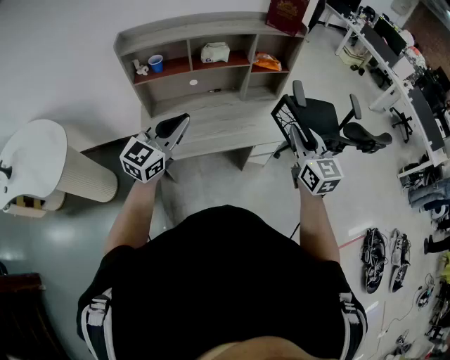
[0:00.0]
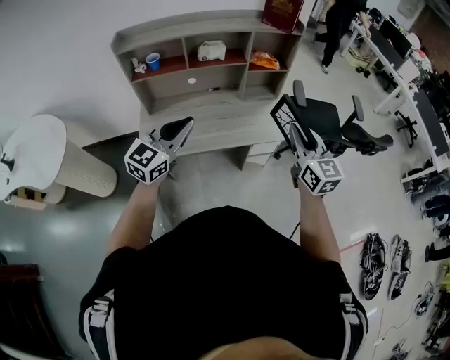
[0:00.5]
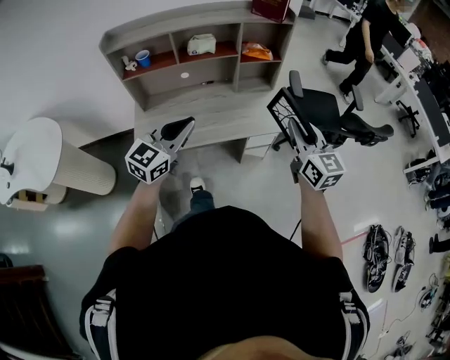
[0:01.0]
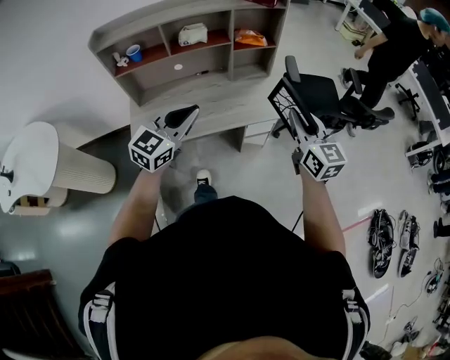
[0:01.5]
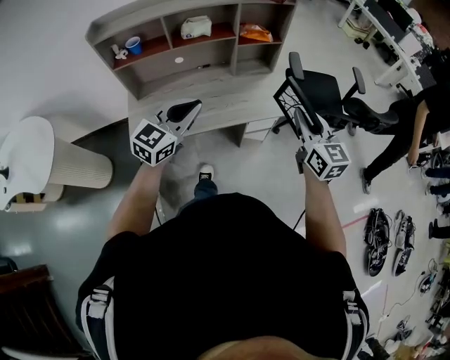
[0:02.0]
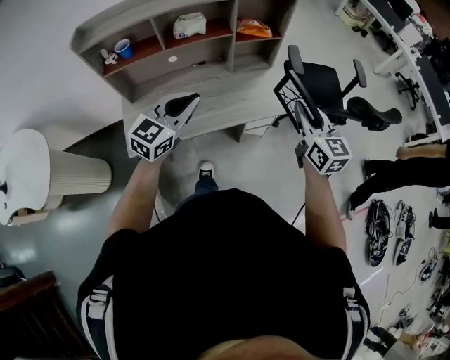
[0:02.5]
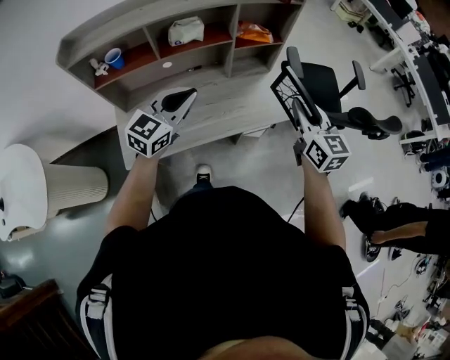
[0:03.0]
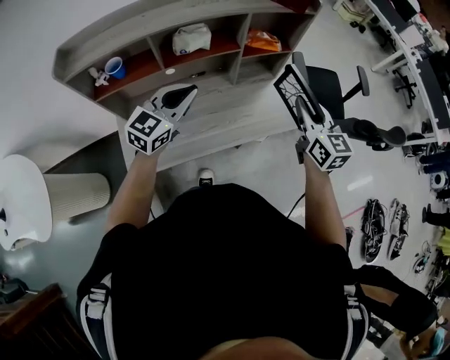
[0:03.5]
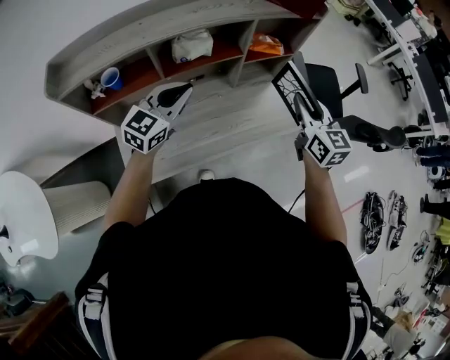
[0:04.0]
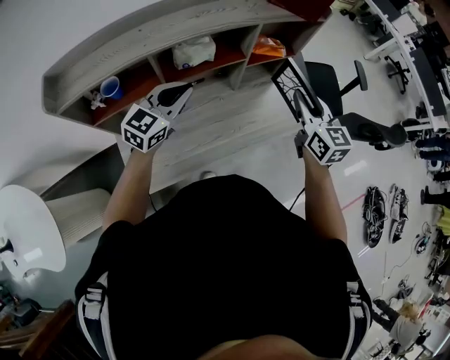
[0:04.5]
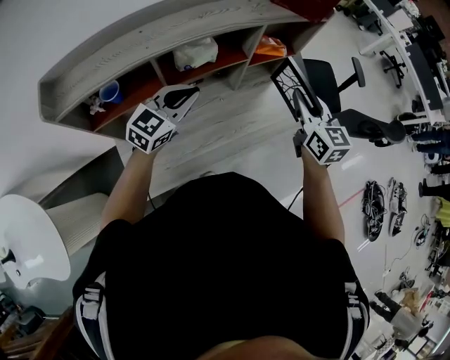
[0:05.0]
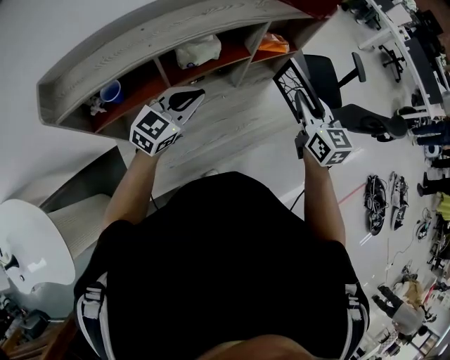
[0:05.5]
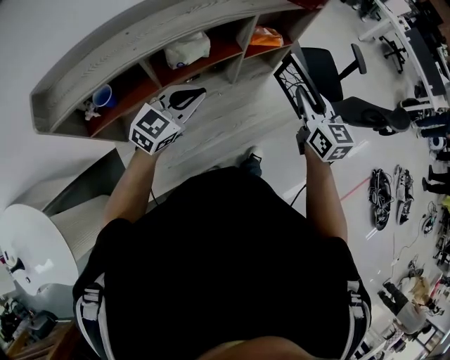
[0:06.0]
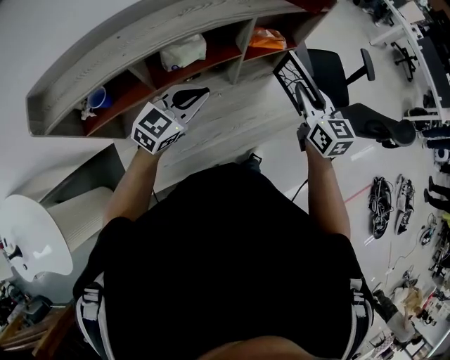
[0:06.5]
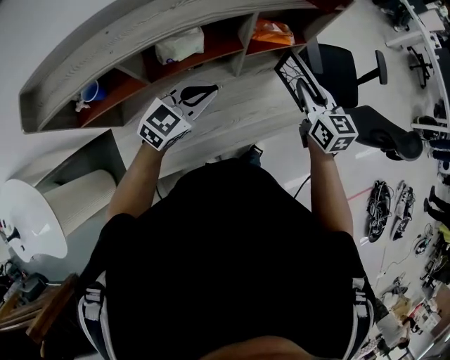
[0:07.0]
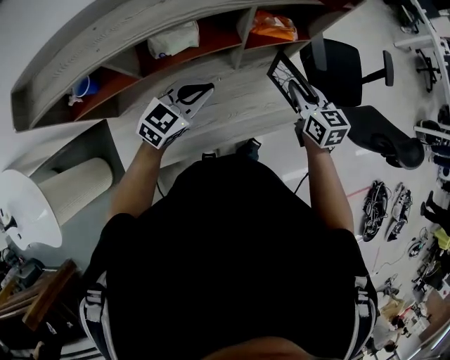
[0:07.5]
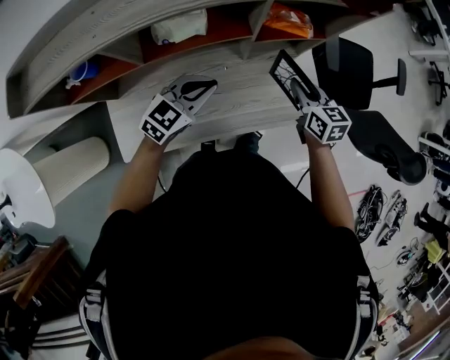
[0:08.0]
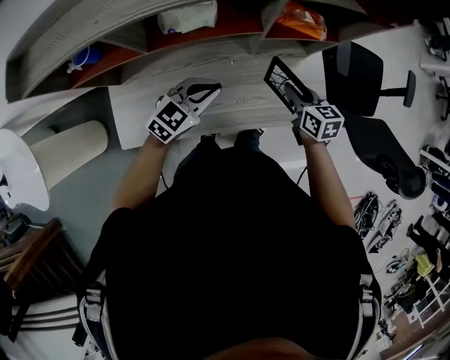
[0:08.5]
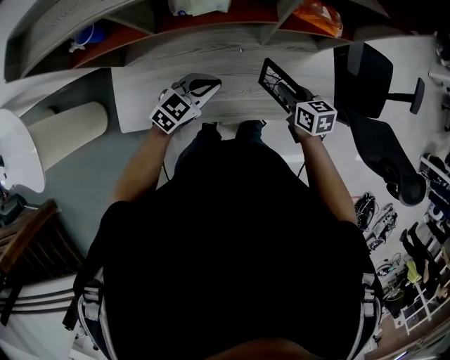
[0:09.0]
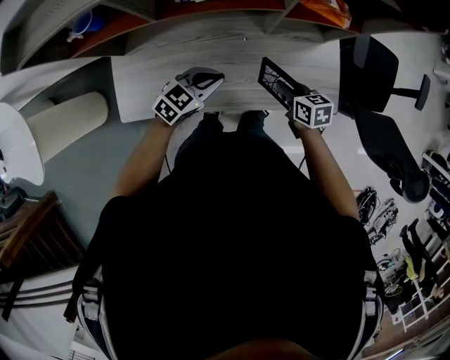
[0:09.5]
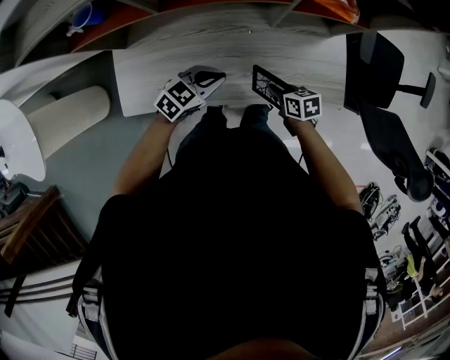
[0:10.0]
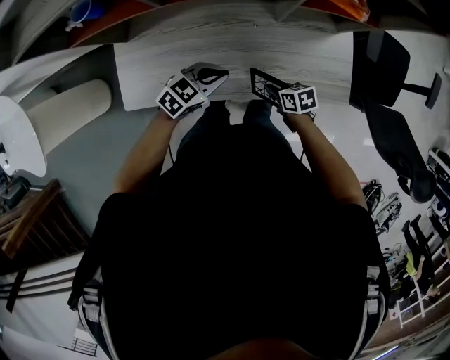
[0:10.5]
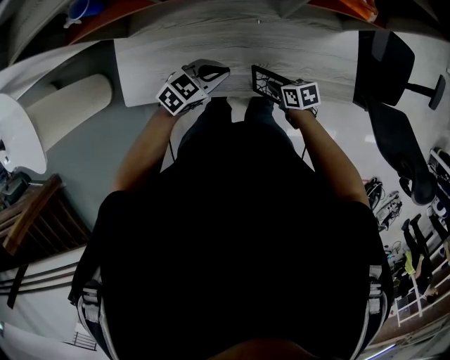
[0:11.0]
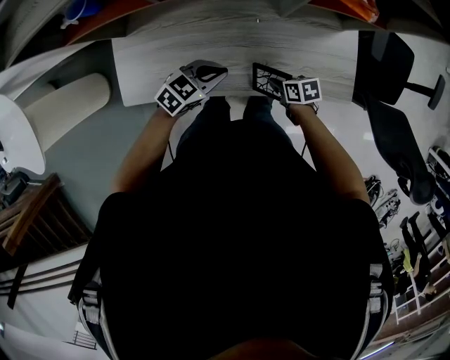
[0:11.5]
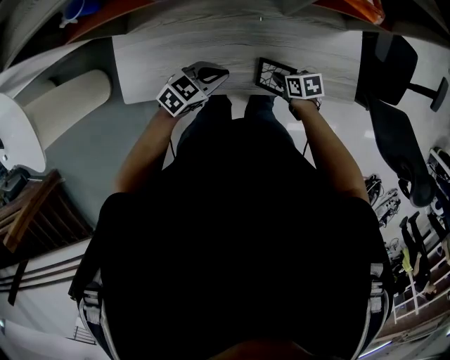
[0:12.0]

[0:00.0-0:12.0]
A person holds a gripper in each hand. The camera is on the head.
0:00.0 to 0:02.0: The right gripper is displaced to the right by roughly 10 cm; the left gripper moves to the right and downward, about 15 cm.
0:02.0 to 0:04.0: The grippers both shift forward and to the left by roughly 30 cm.
0:04.0 to 0:06.0: The grippers move only a little.
0:06.0 to 0:08.0: The left gripper shifts about 15 cm downward, to the right and forward. The right gripper is displaced downward and forward by approximately 20 cm, and swivels about 30 degrees.
0:08.0 to 0:10.0: Both grippers travel together downward, some 15 cm. The right gripper changes its angle by some 40 degrees.
0:10.0 to 0:12.0: The right gripper is displaced downward by about 5 cm.

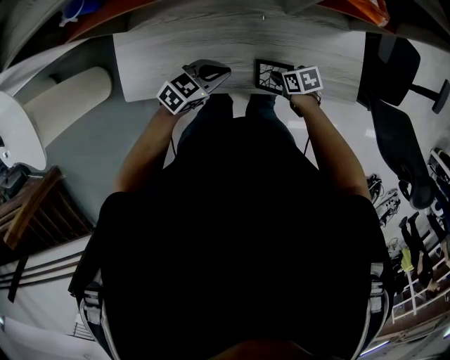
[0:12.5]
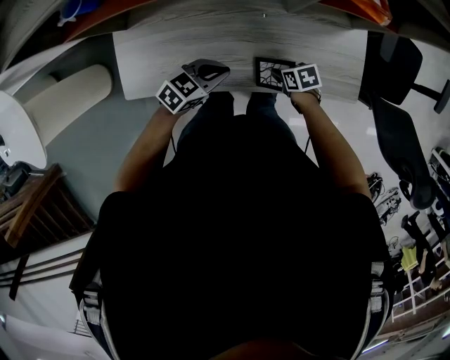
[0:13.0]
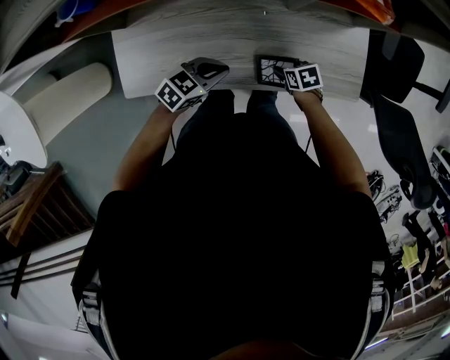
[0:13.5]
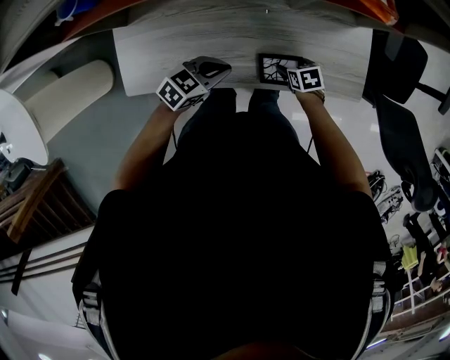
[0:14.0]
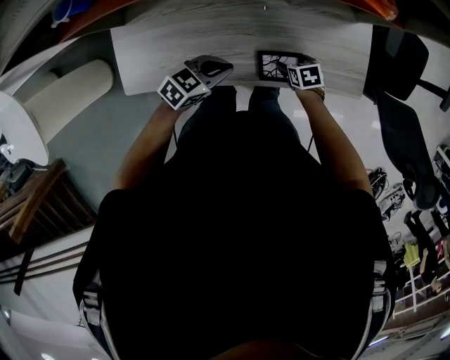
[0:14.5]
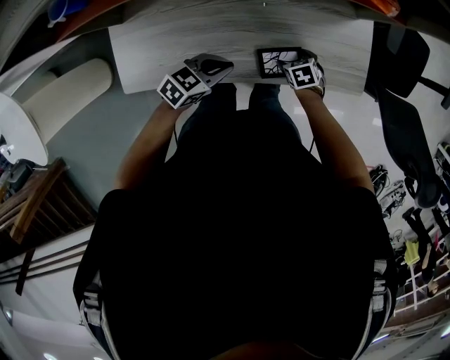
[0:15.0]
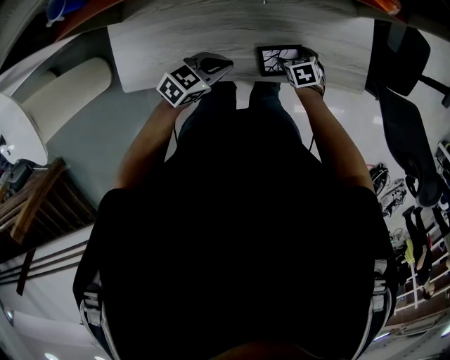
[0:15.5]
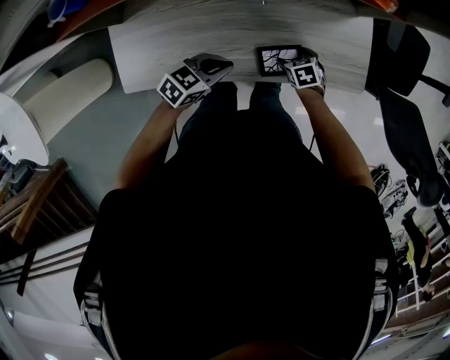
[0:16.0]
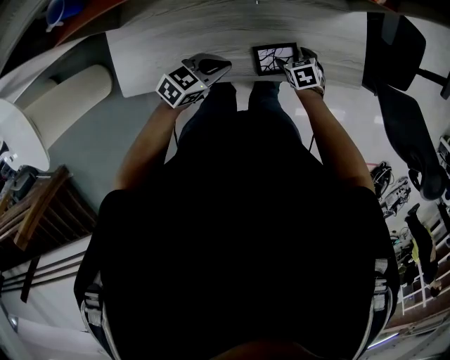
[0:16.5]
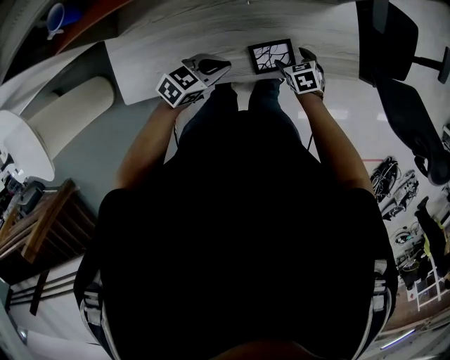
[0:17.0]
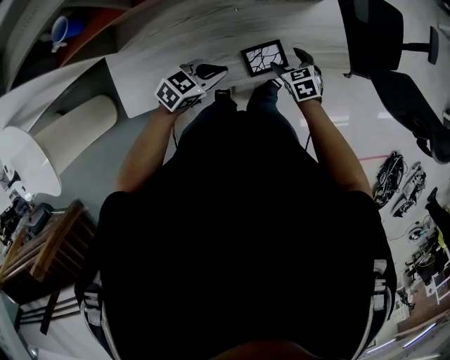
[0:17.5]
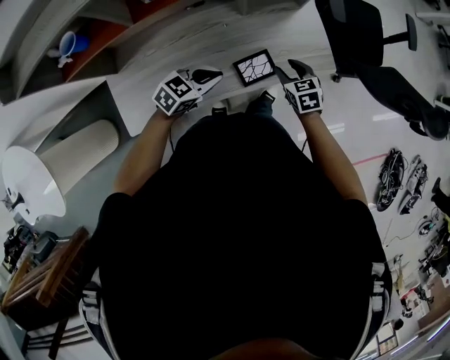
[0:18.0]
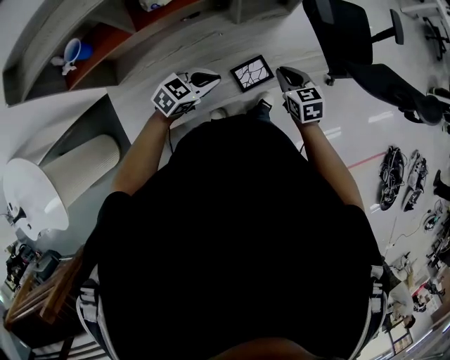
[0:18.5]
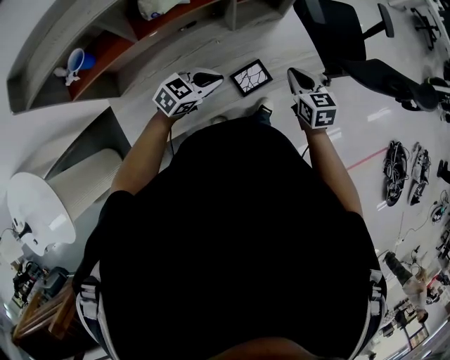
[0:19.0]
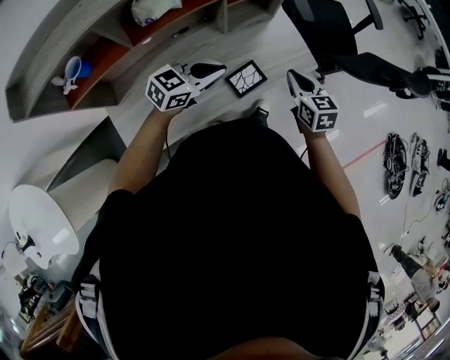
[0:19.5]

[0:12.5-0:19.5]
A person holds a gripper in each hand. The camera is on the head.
0:12.5 to 0:14.5: The right gripper shifts by some 5 cm, and opens.
0:14.5 to 0:16.0: The grippers make only small movements.
0:16.0 to 0:17.5: The right gripper travels upward by some 10 cm.
0:17.5 to 0:19.5: The right gripper is displaced upward by roughly 20 cm, changes its angle by about 40 degrees, and closes its fingers; the left gripper travels upward by roughly 15 cm, and rotates some 20 degrees.

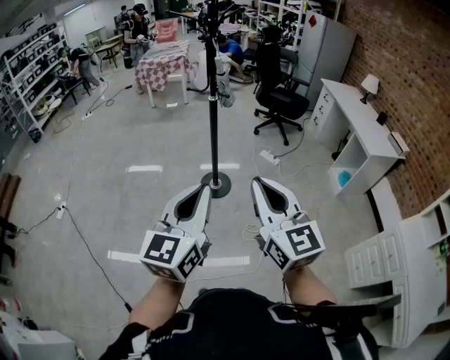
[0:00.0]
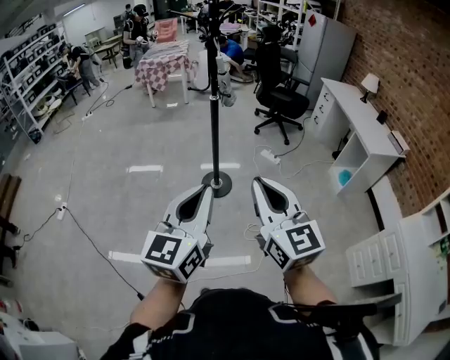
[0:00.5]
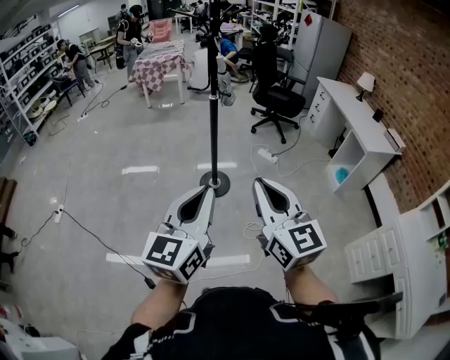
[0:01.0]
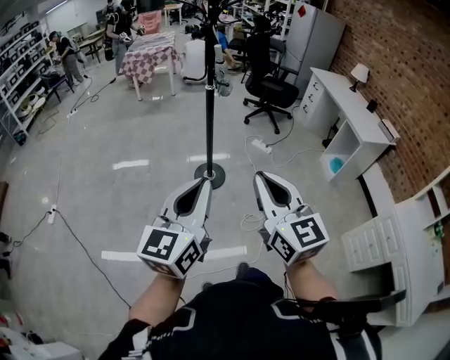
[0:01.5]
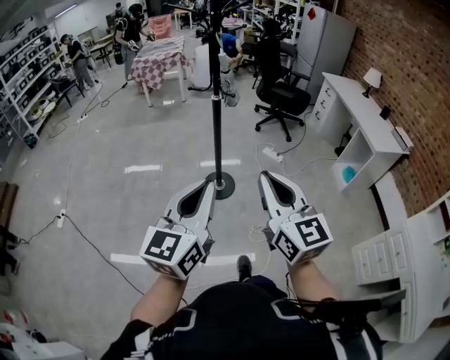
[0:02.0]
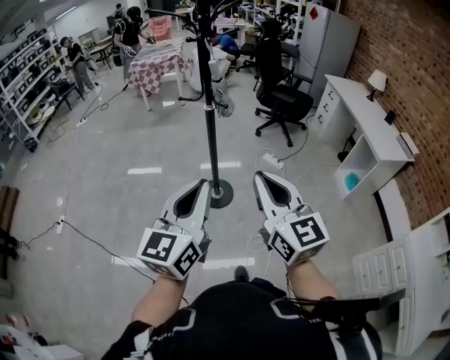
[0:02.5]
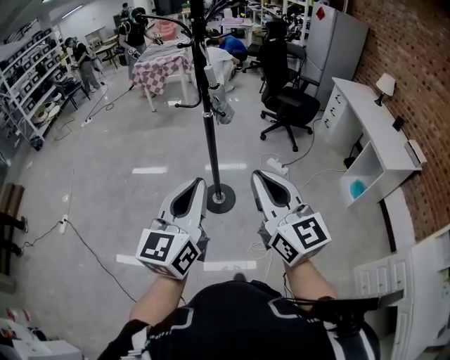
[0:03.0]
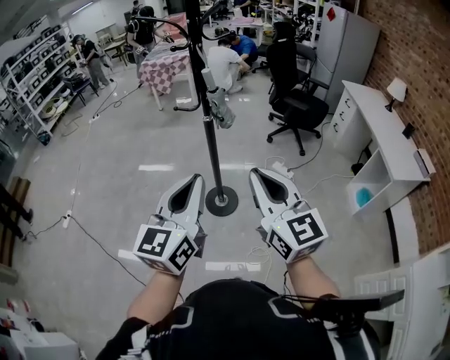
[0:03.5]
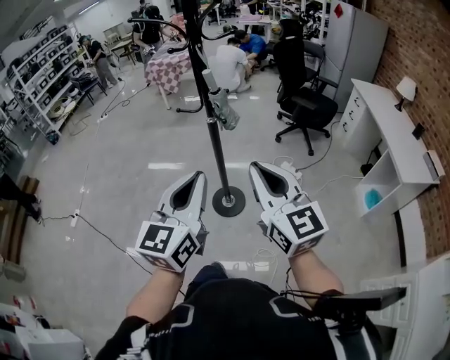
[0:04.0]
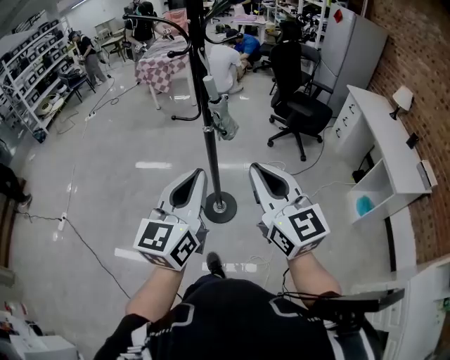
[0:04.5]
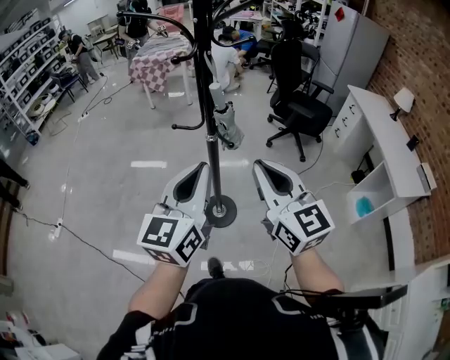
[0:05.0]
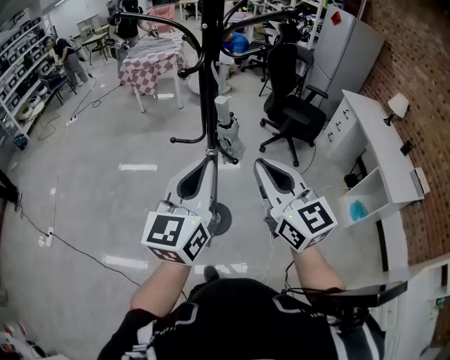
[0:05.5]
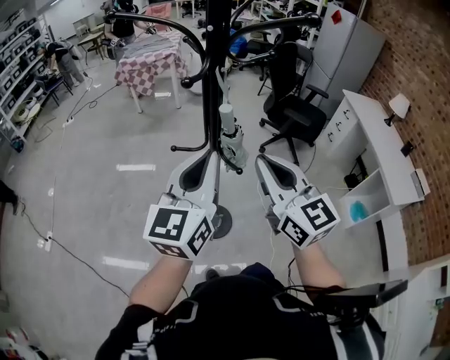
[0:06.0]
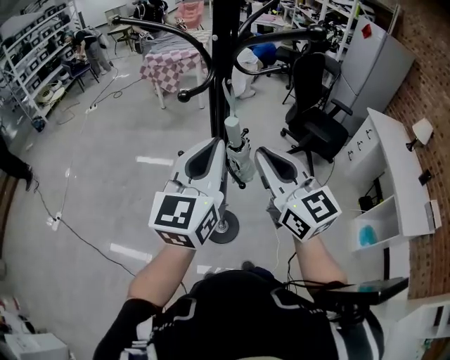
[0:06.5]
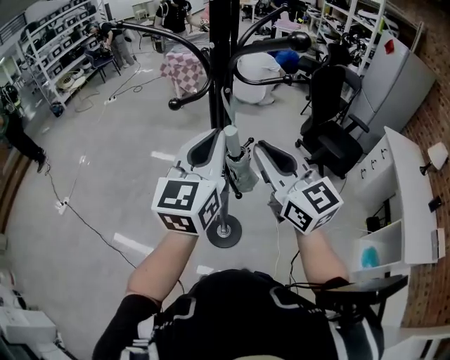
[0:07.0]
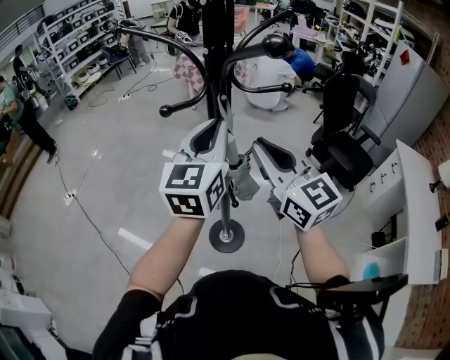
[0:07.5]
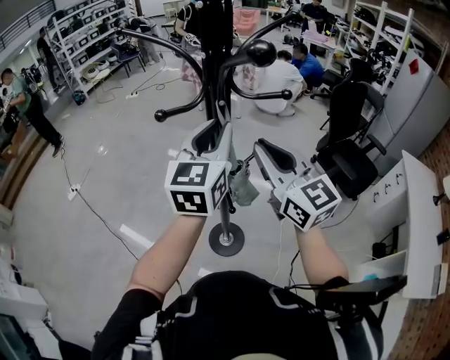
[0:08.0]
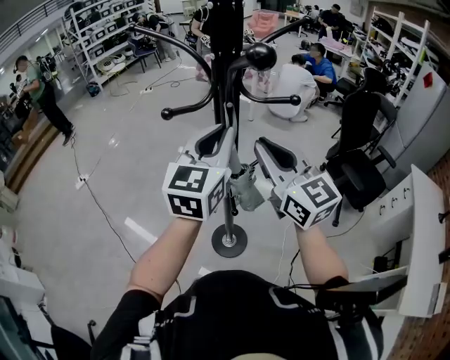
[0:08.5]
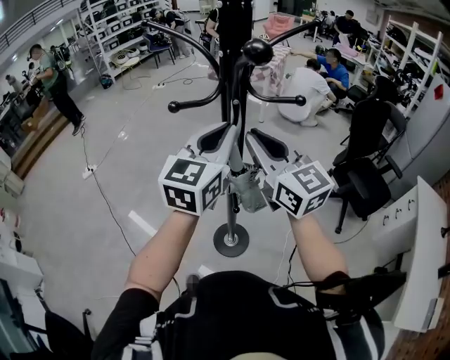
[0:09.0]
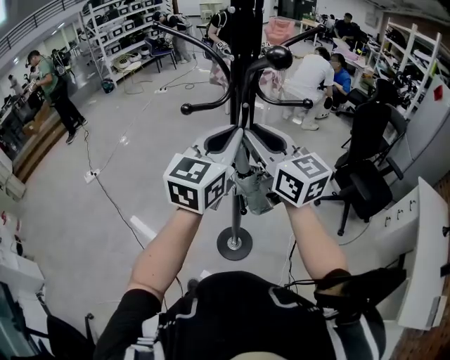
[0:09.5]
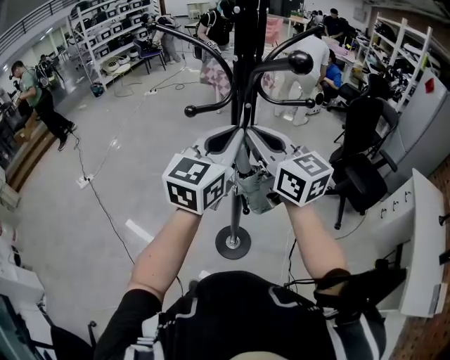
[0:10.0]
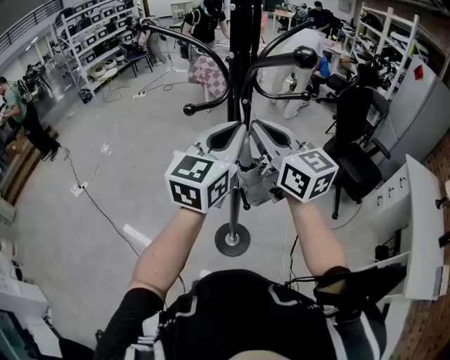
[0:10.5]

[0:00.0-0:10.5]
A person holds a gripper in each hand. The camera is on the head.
0:00.0 to 0:02.0: Both grippers move forward, roughly 10 cm.
0:02.0 to 0:04.0: Both grippers travel together forward and to the right, approximately 25 cm.
0:04.0 to 0:06.5: The two grippers go some 35 cm forward.
0:06.5 to 0:08.5: The right gripper heads forward, covering about 10 cm, and rotates about 20 degrees, while the left gripper moves forward and to the right, about 10 cm, and turns by some 20 degrees.
0:08.5 to 0:10.5: The right gripper goes approximately 5 cm to the left.
